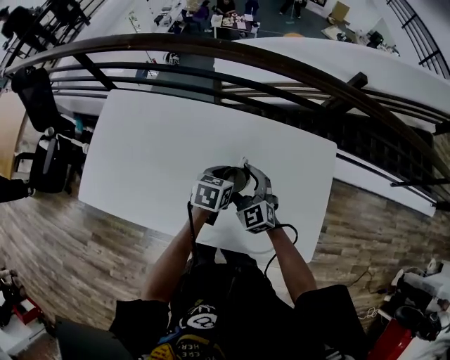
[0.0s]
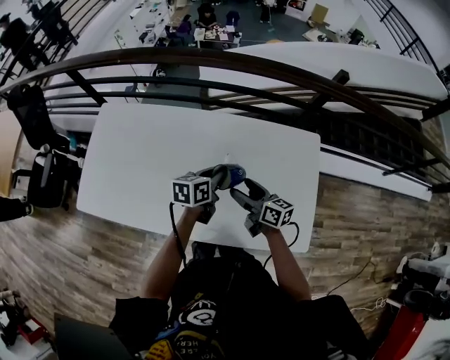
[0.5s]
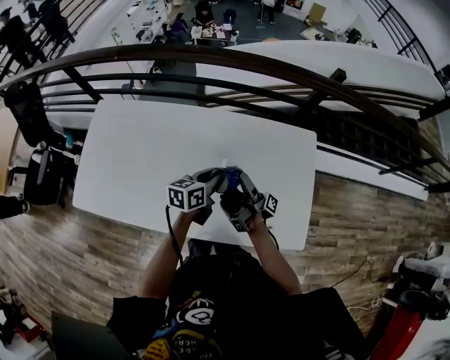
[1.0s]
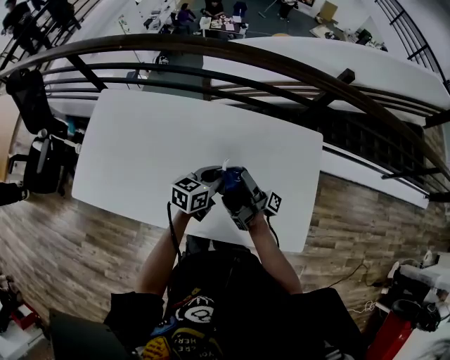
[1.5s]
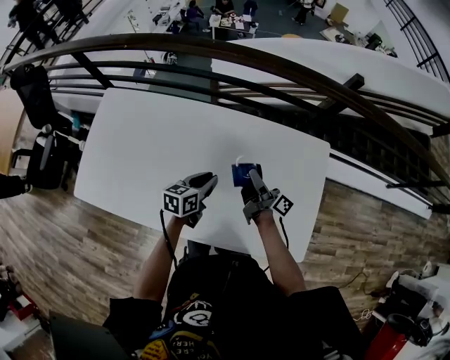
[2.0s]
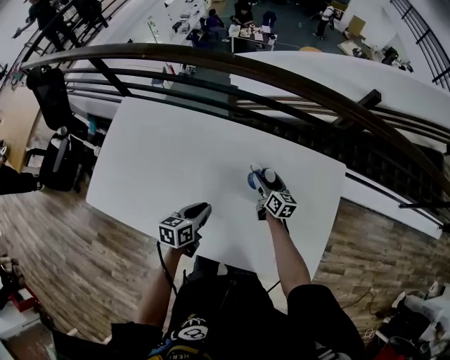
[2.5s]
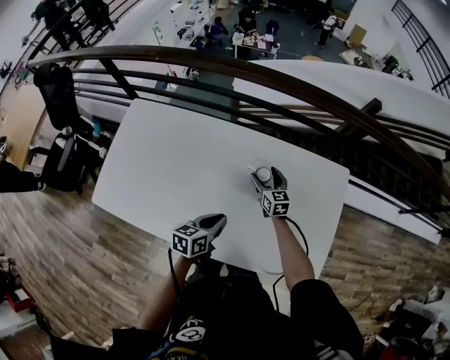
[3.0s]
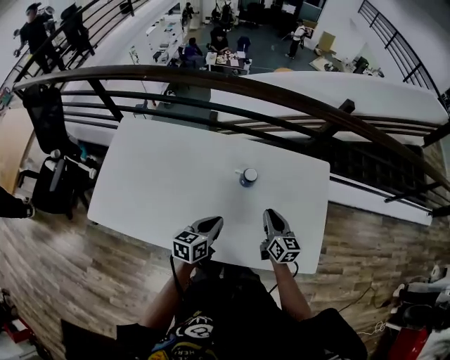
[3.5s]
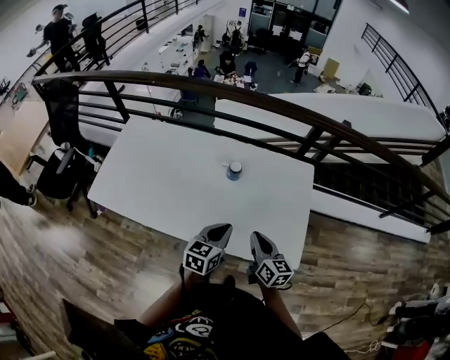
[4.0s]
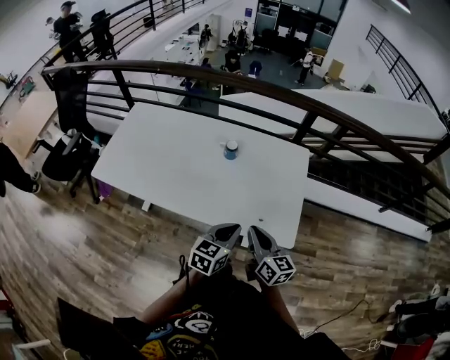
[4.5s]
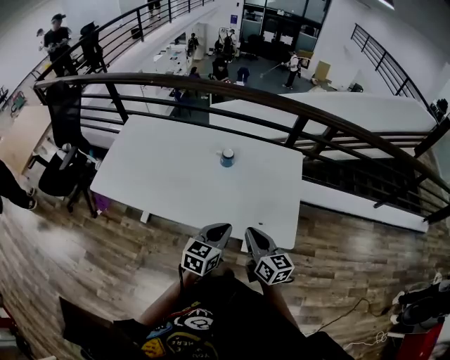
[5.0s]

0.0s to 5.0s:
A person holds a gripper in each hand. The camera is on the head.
0.0s to 2.5s: The right gripper heads downward, forward and to the right, covering about 20 cm, and rotates around the line of its fingers by roughly 60 degrees, clockwise from behind; the left gripper travels to the left and backward by about 10 cm.
2.5s to 5.0s: The left gripper heads backward, to the right and upward, covering roughly 40 cm, and turns by about 30 degrees, while the right gripper heads backward and upward, covering some 50 cm, and closes up.

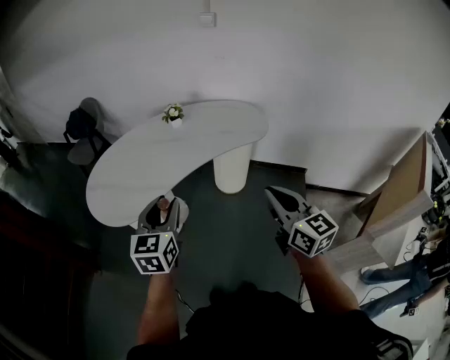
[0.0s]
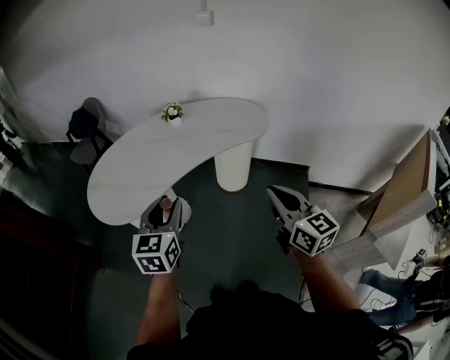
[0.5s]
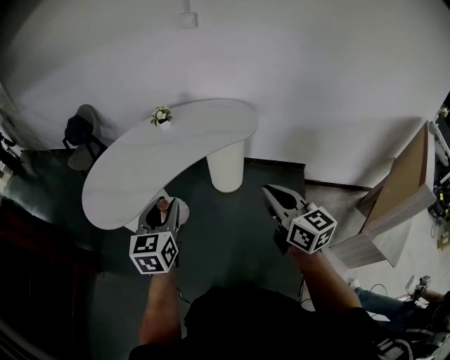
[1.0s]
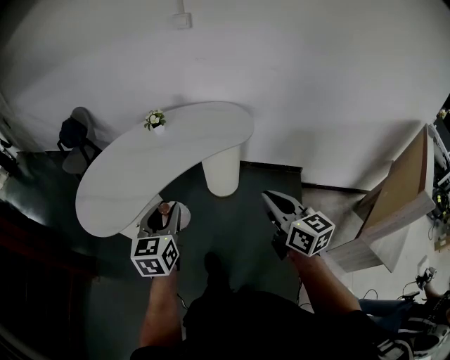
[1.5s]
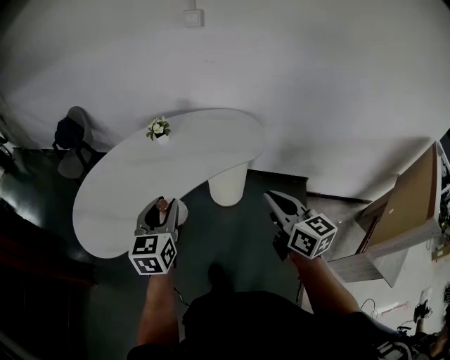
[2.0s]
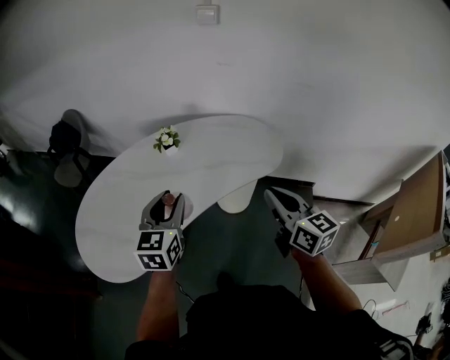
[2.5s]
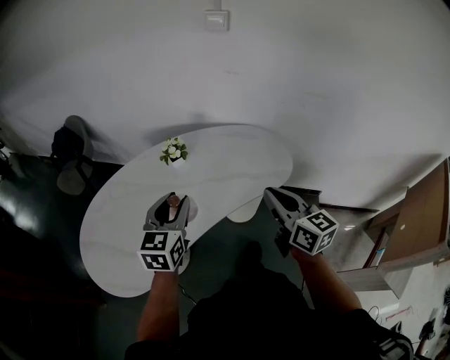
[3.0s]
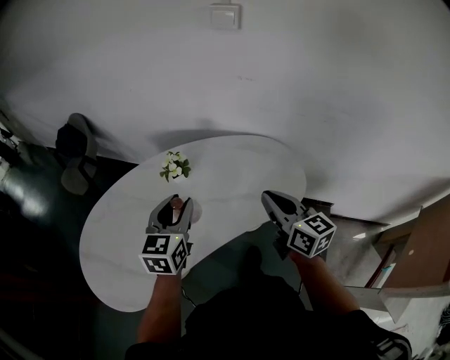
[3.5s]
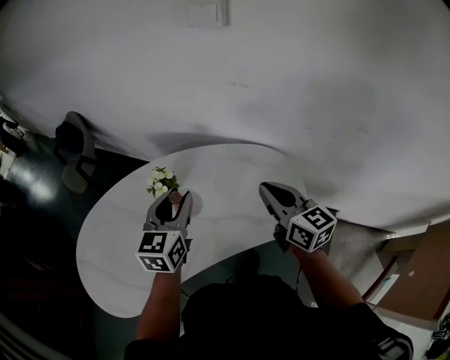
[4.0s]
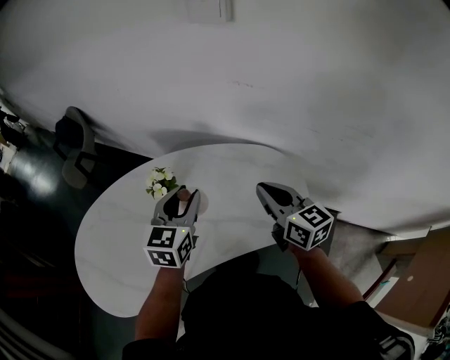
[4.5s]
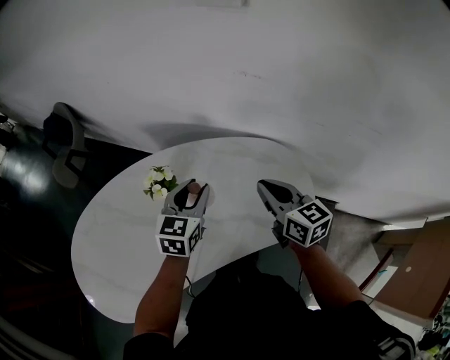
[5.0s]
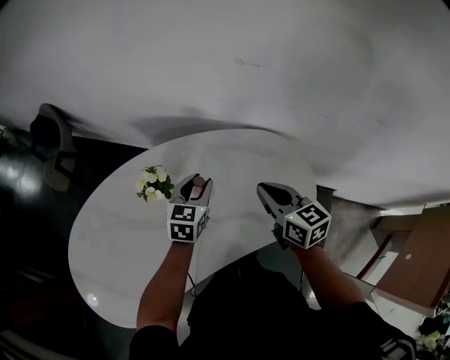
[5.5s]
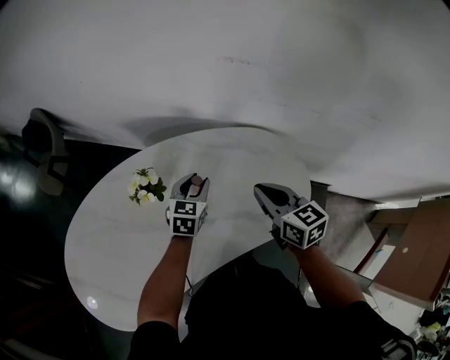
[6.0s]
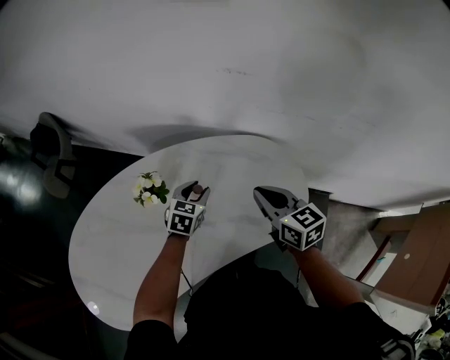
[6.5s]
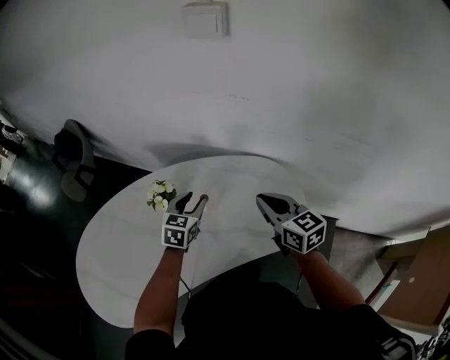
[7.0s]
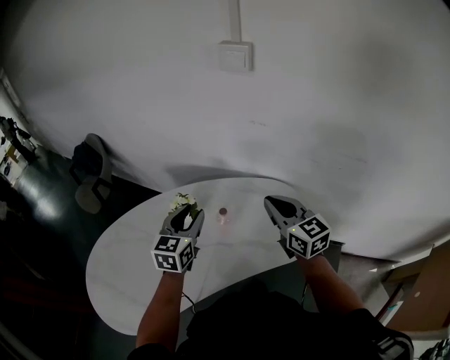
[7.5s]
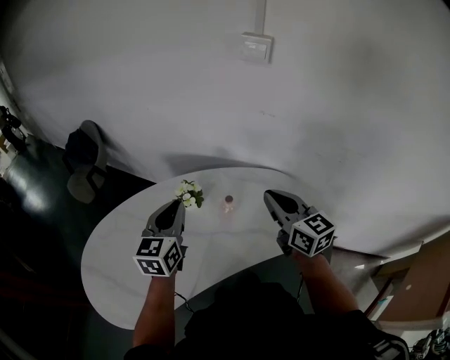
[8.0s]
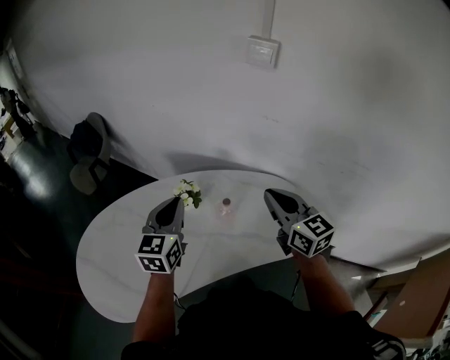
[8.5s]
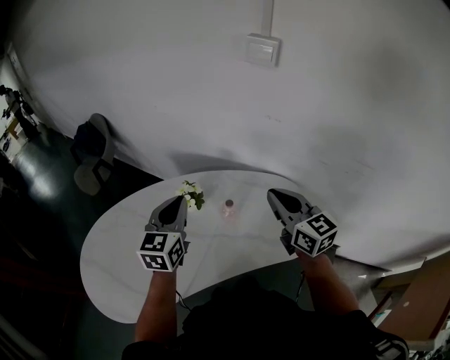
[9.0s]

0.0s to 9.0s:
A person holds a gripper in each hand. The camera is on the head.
0.0s to 2.0s: The two grippers go roughly 15 cm forward and to the right.
2.0s to 4.5s: The pair of grippers is taken forward, approximately 50 cm.
4.5s to 7.0s: The right gripper moves some 10 cm downward and comes back, while the left gripper goes approximately 10 cm downward.
7.0s to 9.0s: The left gripper shifts some 20 cm upward and to the left, rotates roughly 30 degrees, and closes its fingers. The right gripper shifts approximately 15 cm upward and to the left.

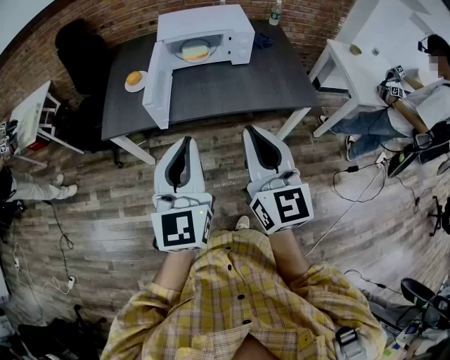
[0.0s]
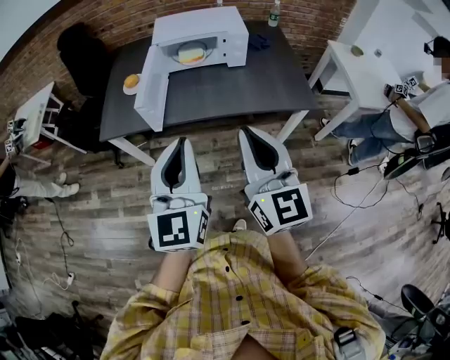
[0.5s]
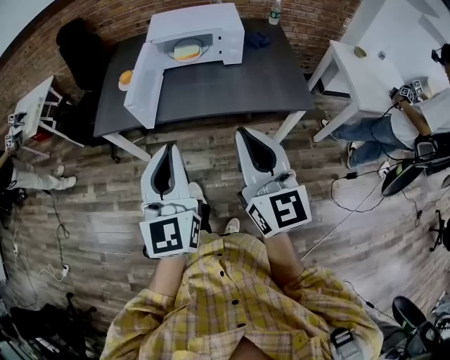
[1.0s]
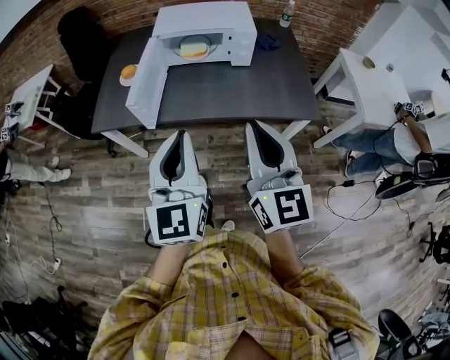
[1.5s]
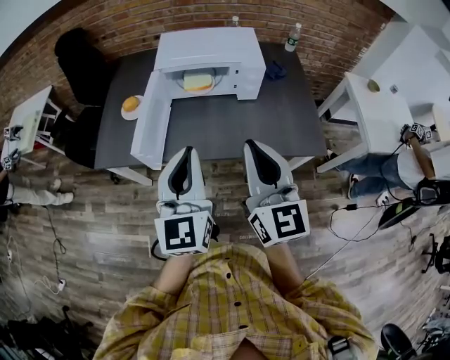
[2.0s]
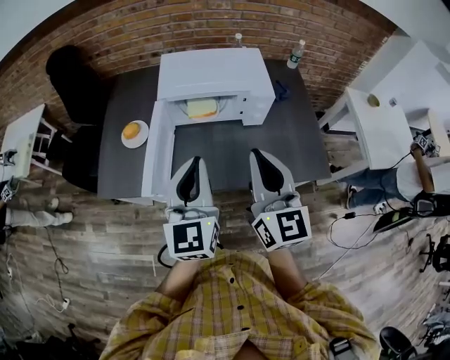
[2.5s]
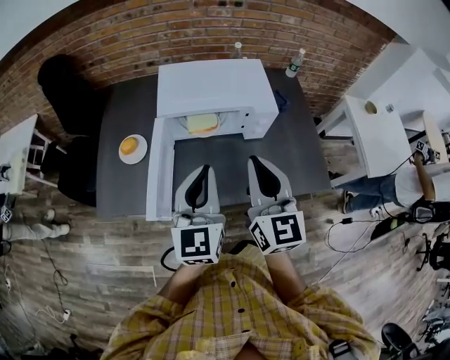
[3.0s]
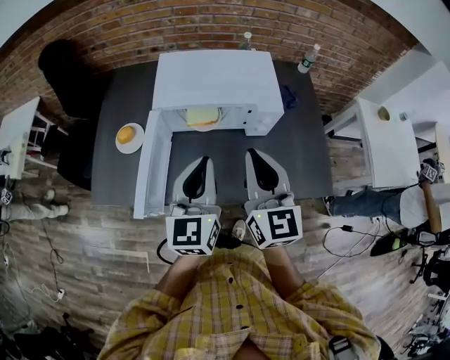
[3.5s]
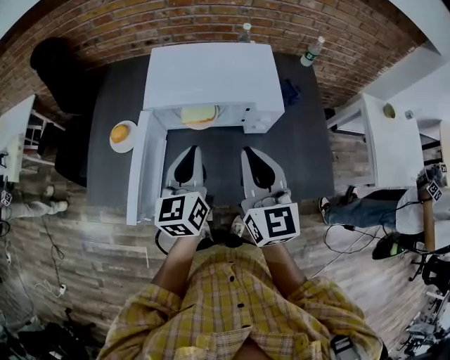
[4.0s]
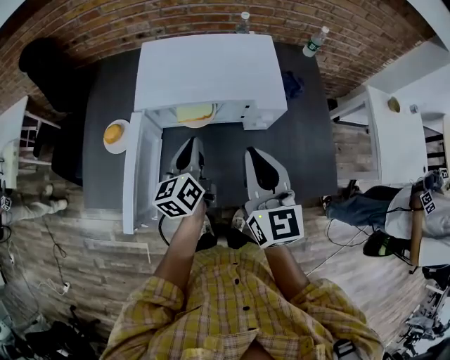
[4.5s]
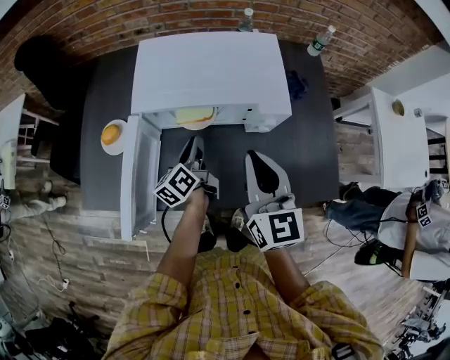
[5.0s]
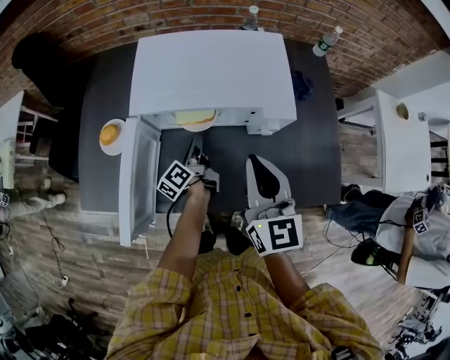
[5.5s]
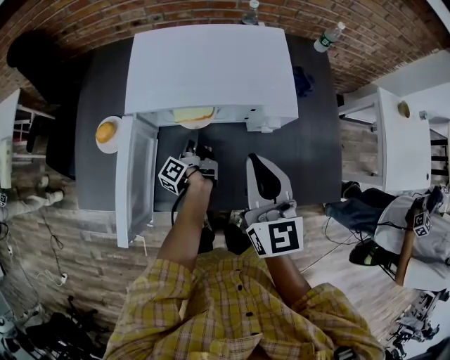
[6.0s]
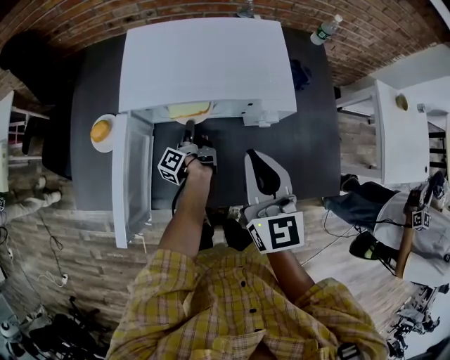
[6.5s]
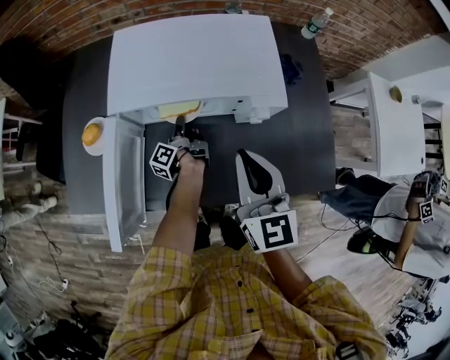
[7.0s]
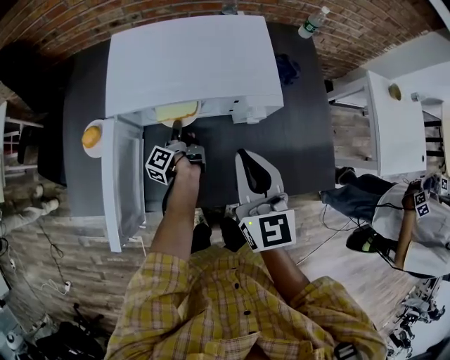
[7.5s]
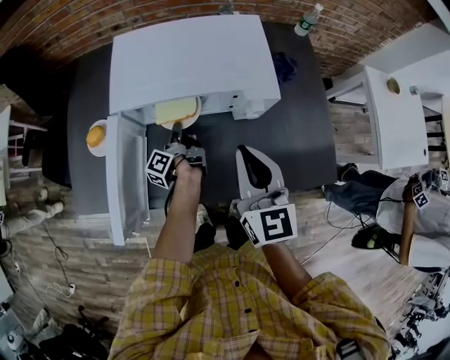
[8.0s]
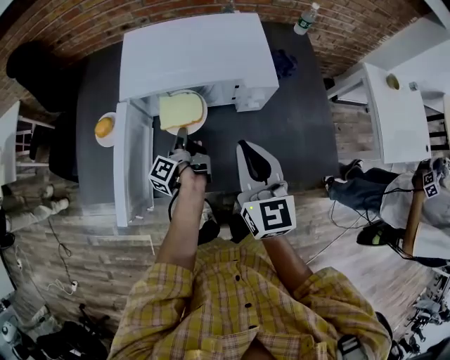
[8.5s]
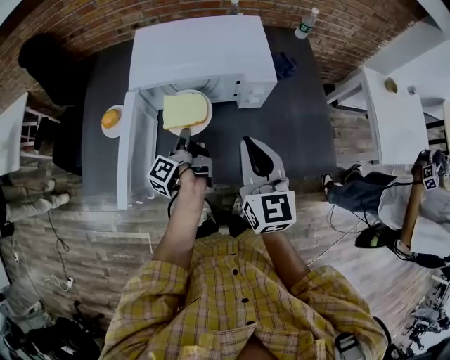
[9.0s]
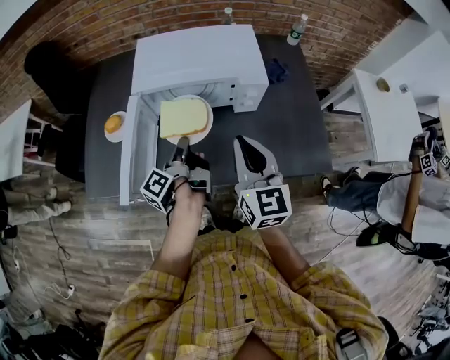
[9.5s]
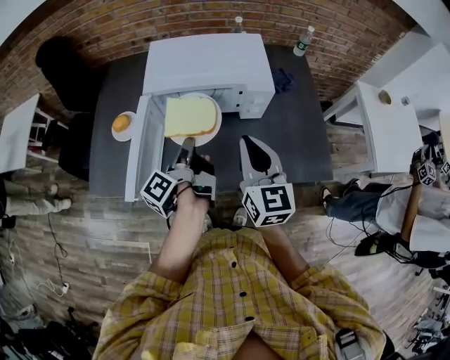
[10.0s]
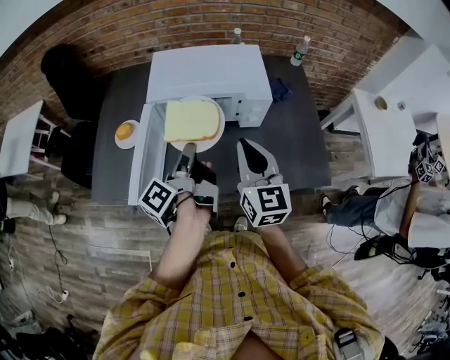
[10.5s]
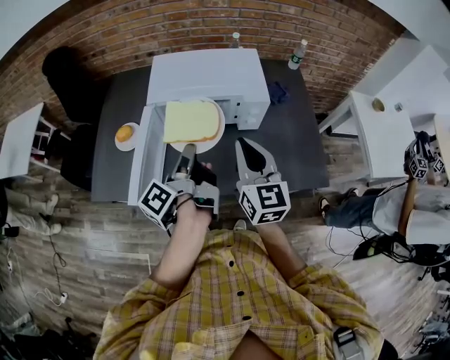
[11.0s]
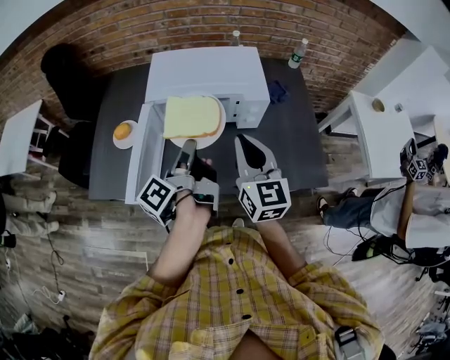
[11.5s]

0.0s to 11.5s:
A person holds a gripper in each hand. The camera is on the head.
0.0s to 2.0s: Both grippers travel together forward, approximately 20 cm.
2.0s to 4.0s: The grippers both shift forward by some 25 cm. The left gripper turns by approximately 20 degrees.
4.0s to 6.0s: The left gripper goes some 30 cm downward and forward, and rolls counterclockwise, seen from behind, by approximately 70 degrees, while the right gripper moves downward and forward, approximately 10 cm.
6.0s to 7.5s: The grippers make only small movements.
7.5s to 9.5s: The right gripper moves backward, some 10 cm, while the left gripper shifts about 25 cm upward and backward.
9.5s to 11.5s: The left gripper is displaced upward by about 10 cm.

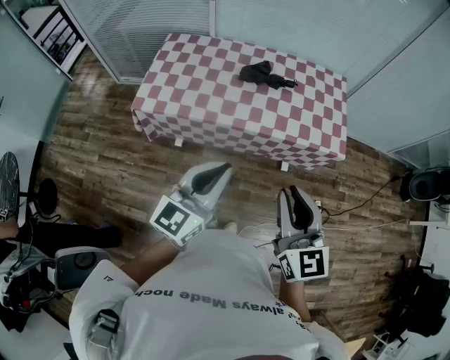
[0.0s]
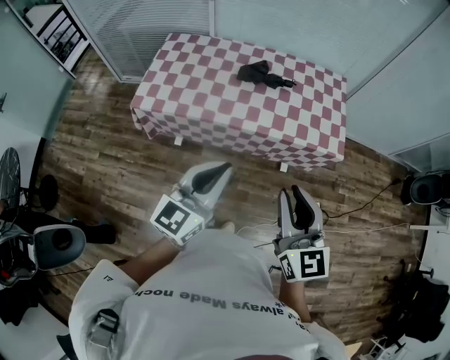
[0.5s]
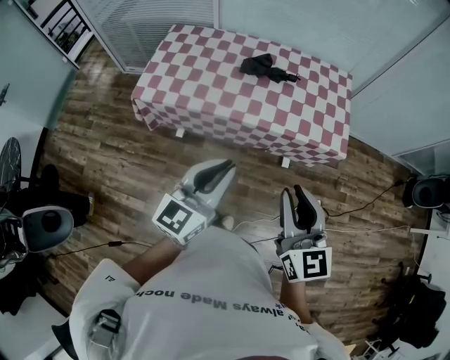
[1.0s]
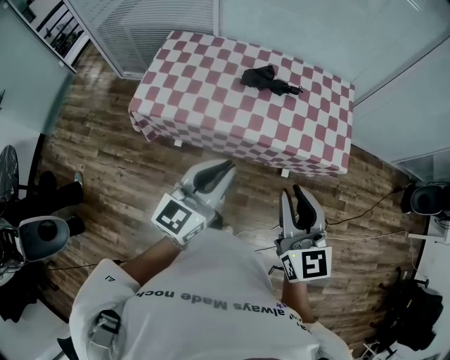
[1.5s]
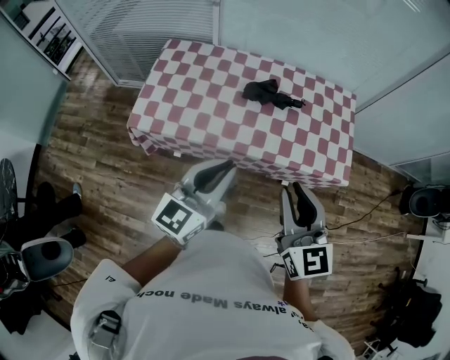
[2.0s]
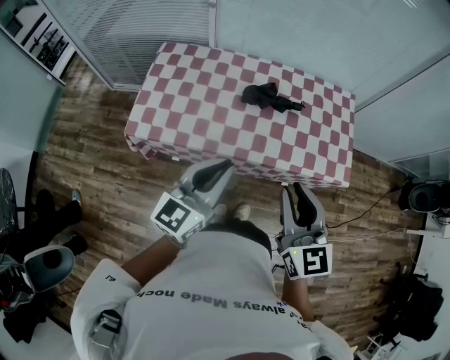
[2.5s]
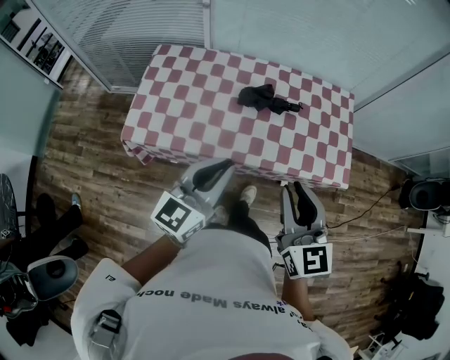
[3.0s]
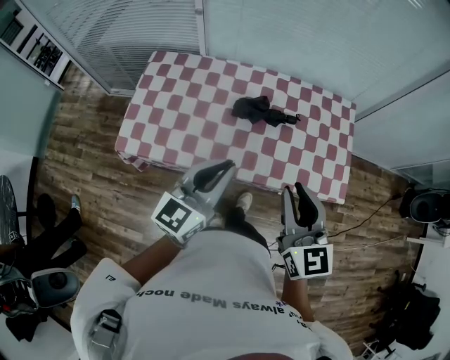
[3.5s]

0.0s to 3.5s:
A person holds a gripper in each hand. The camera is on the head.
0.0s to 2.0s: Both grippers travel together forward, approximately 15 cm.
2.0s to 3.5s: The two grippers go roughly 15 cm forward.
